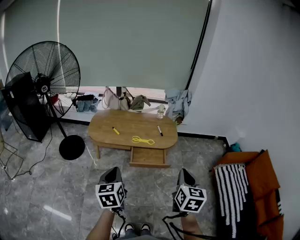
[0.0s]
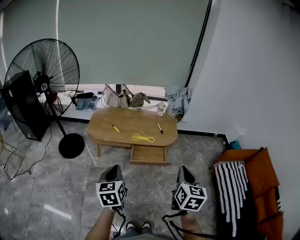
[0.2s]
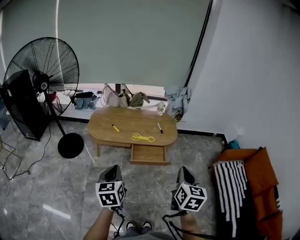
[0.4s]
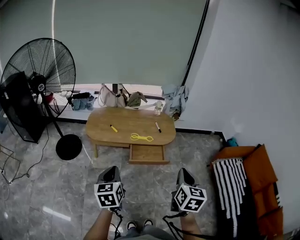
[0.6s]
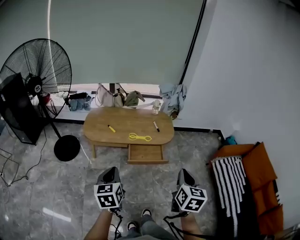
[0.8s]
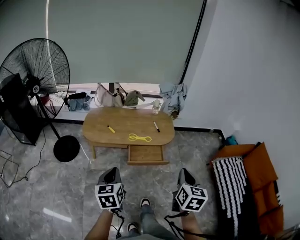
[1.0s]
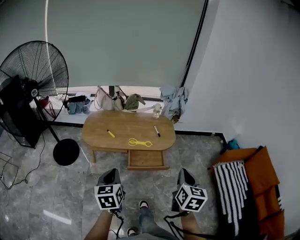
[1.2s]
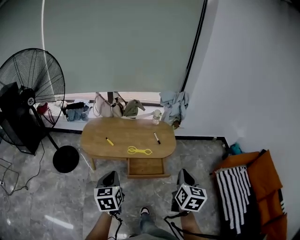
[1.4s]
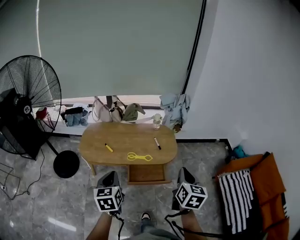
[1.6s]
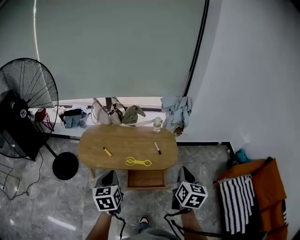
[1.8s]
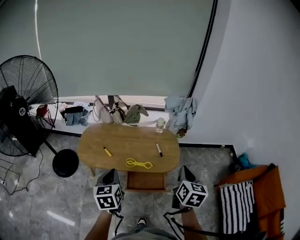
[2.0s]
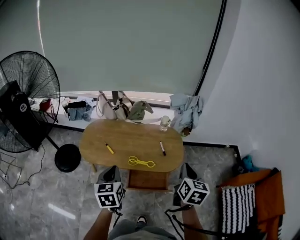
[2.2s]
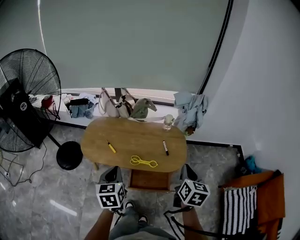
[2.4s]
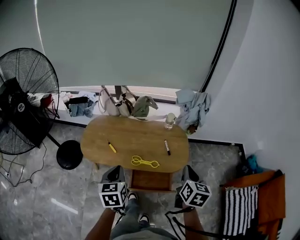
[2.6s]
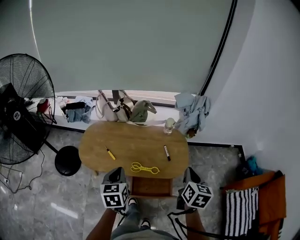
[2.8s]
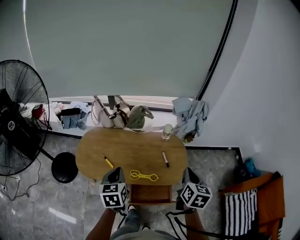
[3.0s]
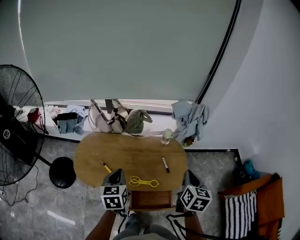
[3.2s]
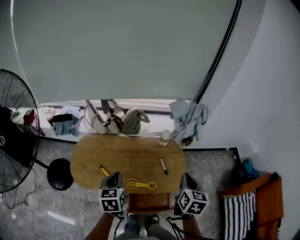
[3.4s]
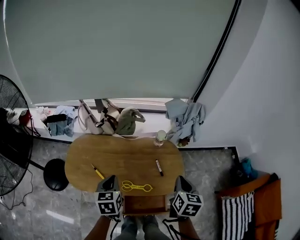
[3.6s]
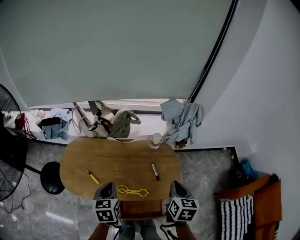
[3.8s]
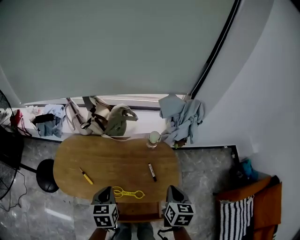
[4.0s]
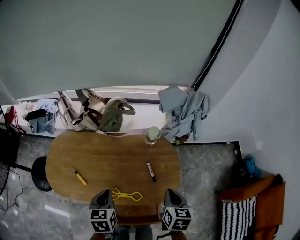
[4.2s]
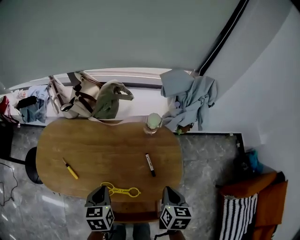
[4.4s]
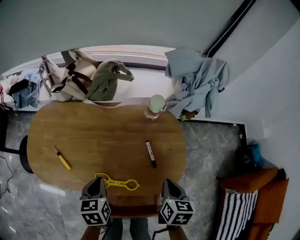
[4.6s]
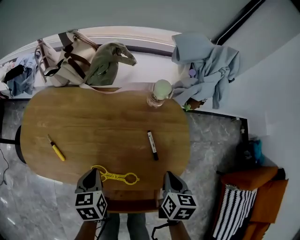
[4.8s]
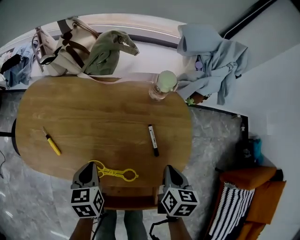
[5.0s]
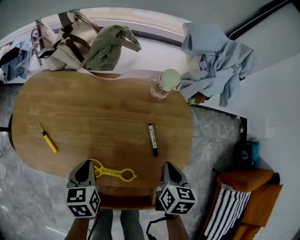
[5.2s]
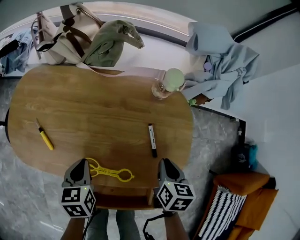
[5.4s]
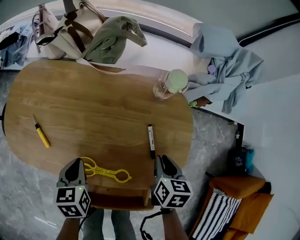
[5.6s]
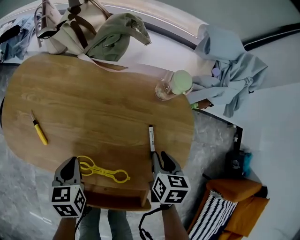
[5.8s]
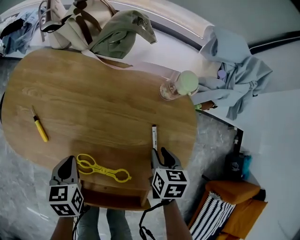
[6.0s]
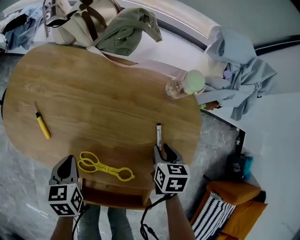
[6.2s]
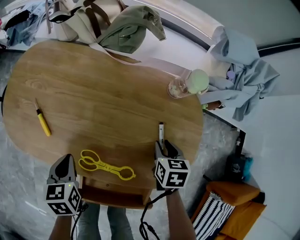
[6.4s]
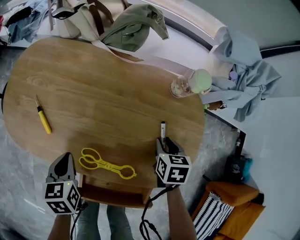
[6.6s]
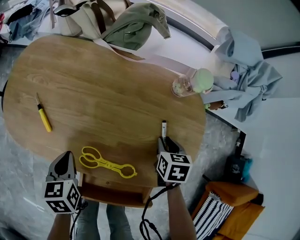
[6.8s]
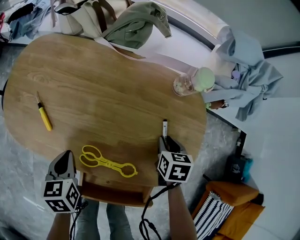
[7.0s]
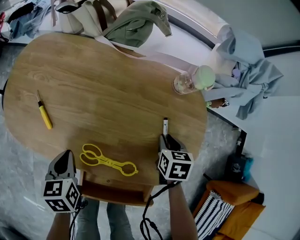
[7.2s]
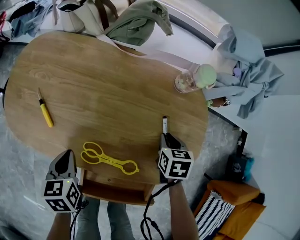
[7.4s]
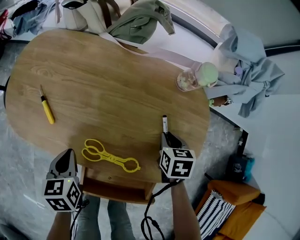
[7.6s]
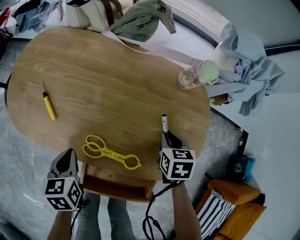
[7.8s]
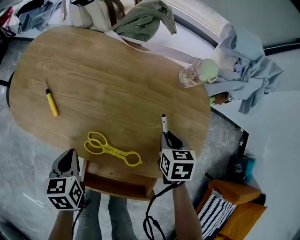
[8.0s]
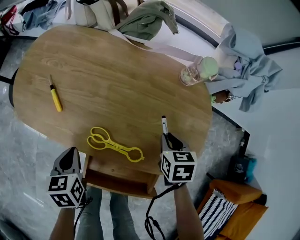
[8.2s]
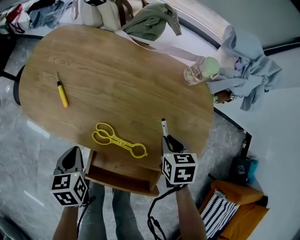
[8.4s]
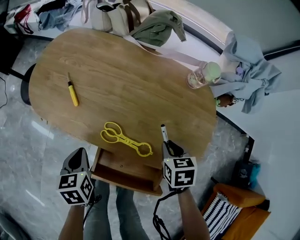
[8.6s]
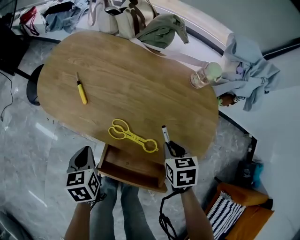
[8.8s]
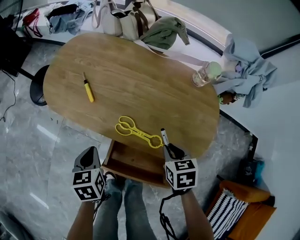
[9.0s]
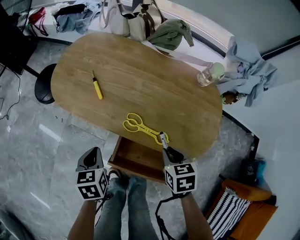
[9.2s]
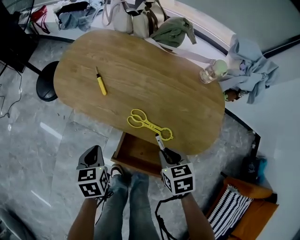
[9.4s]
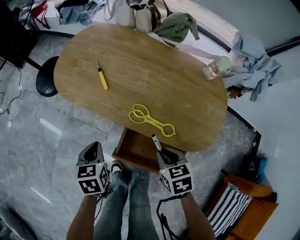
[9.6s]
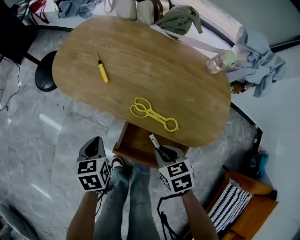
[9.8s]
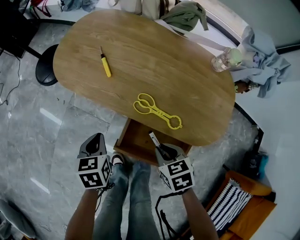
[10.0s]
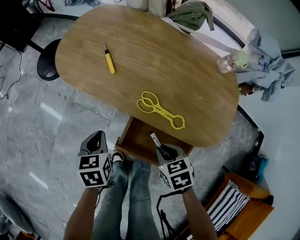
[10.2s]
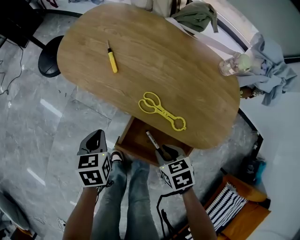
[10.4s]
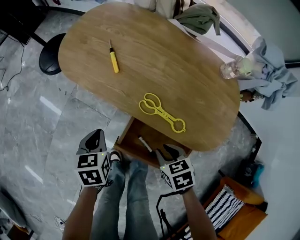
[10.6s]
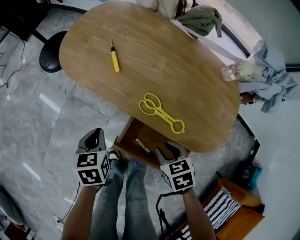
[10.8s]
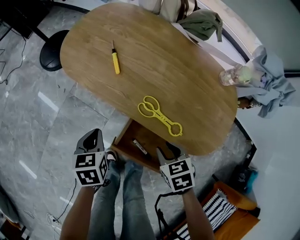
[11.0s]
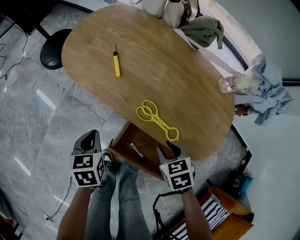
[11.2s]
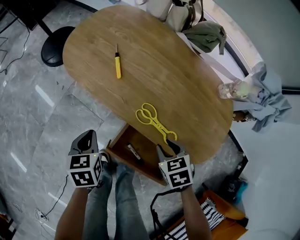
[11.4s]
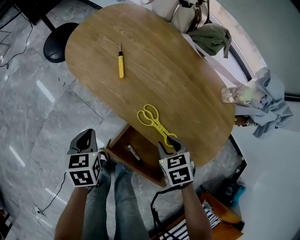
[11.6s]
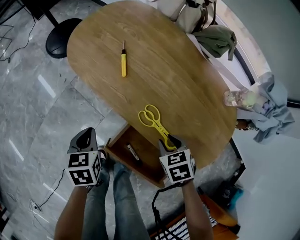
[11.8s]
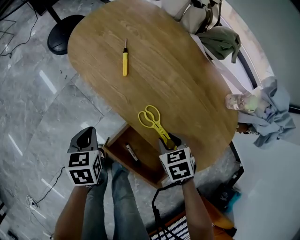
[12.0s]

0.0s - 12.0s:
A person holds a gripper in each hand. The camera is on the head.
0.0s - 1.6s: The two grippers go some 20 cm forward.
1.6s - 3.0s: Both grippers move forward, roughly 25 cm.
3.0s - 4.4s: The grippers both shift downward and forward by approximately 30 cm.
4.4s - 6.0s: The left gripper heads downward and to the left, covering roughly 15 cm. The right gripper travels downward and forward by roughly 20 cm, changes its angle by approximately 20 degrees, and opens.
6.0s - 7.6s: The left gripper ends up roughly 5 cm from where it was.
7.6s - 9.0s: The left gripper shifts approximately 10 cm backward. Meanwhile the right gripper goes roughly 20 cm backward, to the left and upward.
9.0s - 10.4s: The right gripper heads to the left, backward and downward, covering some 15 cm, and swivels roughly 20 degrees. Meanwhile the left gripper goes about 5 cm to the left.
10.4s - 12.0s: The right gripper shifts some 15 cm forward and to the right, and swivels some 20 degrees.

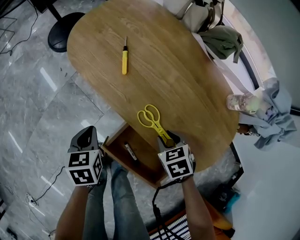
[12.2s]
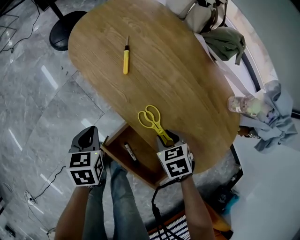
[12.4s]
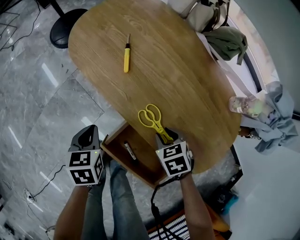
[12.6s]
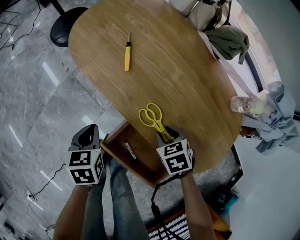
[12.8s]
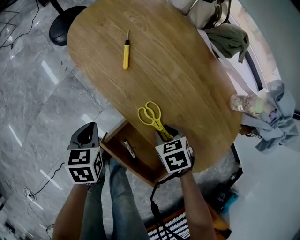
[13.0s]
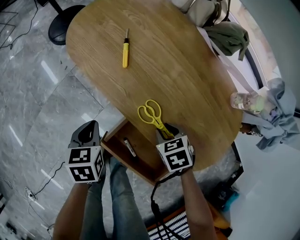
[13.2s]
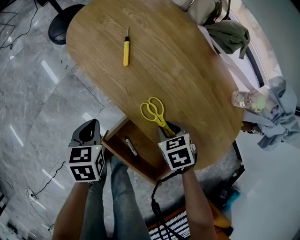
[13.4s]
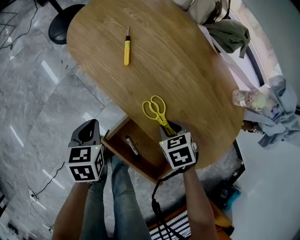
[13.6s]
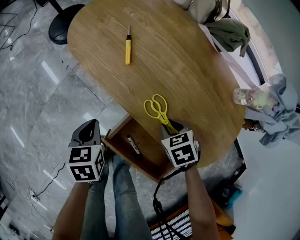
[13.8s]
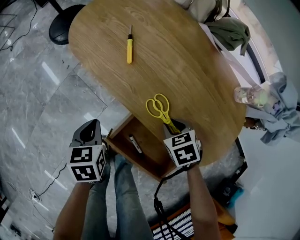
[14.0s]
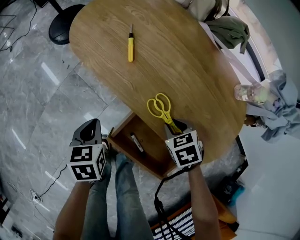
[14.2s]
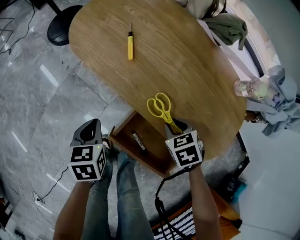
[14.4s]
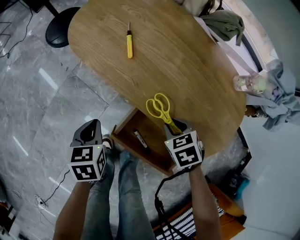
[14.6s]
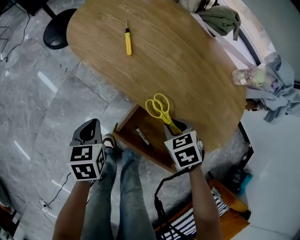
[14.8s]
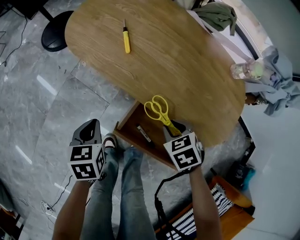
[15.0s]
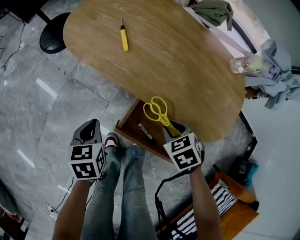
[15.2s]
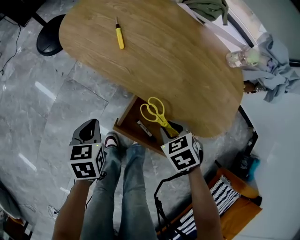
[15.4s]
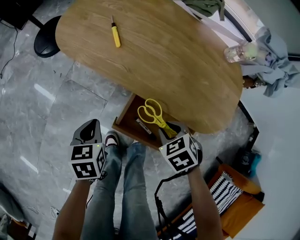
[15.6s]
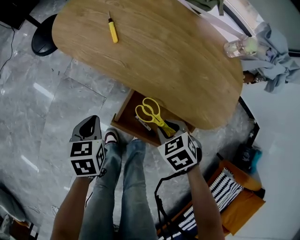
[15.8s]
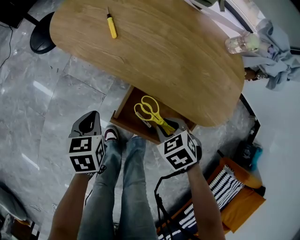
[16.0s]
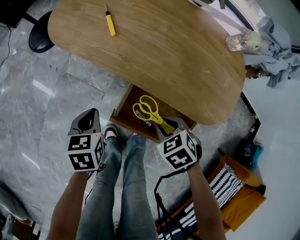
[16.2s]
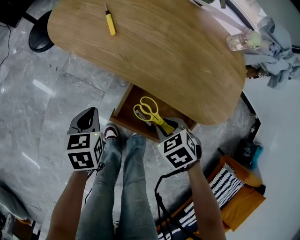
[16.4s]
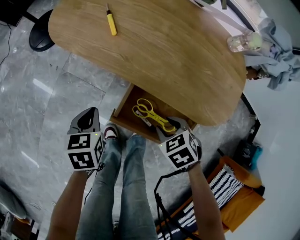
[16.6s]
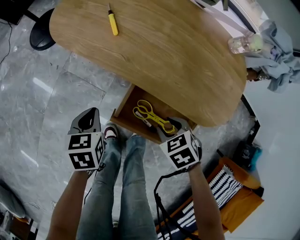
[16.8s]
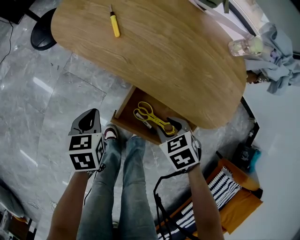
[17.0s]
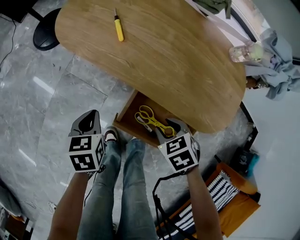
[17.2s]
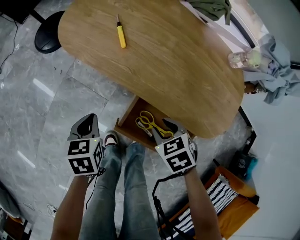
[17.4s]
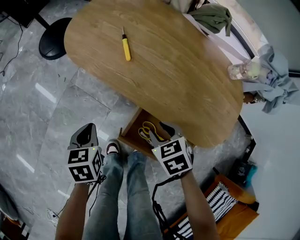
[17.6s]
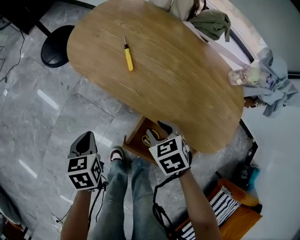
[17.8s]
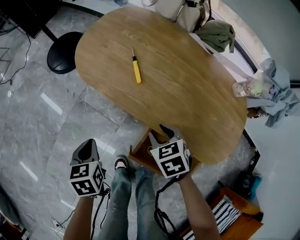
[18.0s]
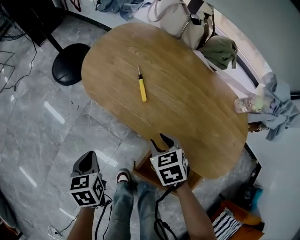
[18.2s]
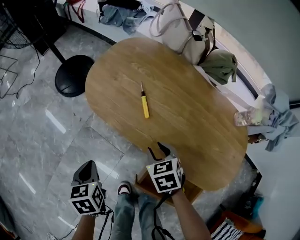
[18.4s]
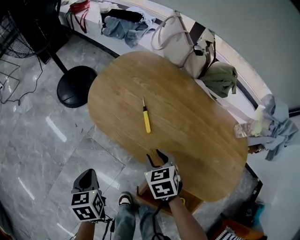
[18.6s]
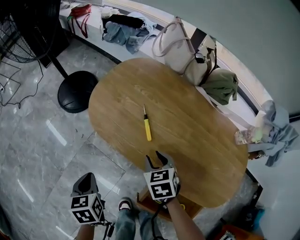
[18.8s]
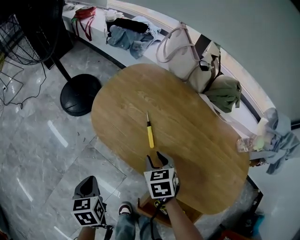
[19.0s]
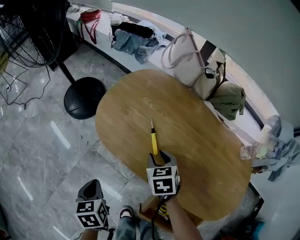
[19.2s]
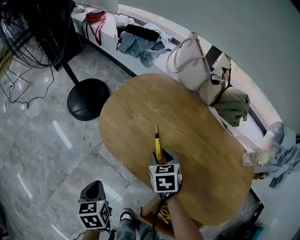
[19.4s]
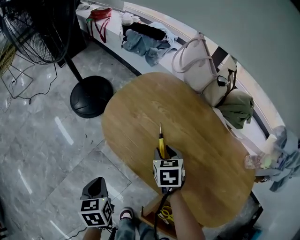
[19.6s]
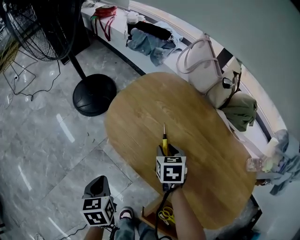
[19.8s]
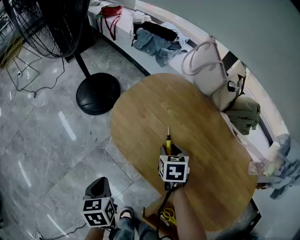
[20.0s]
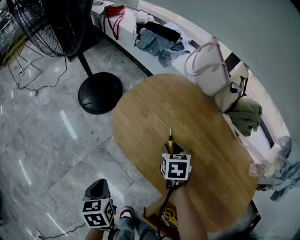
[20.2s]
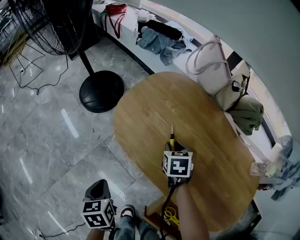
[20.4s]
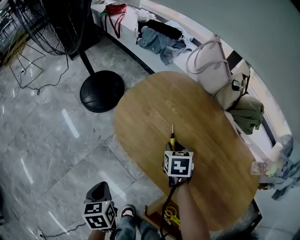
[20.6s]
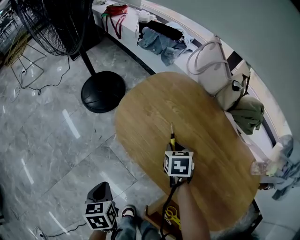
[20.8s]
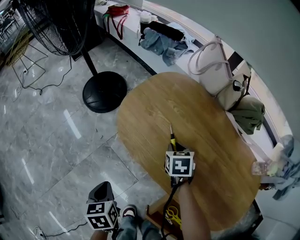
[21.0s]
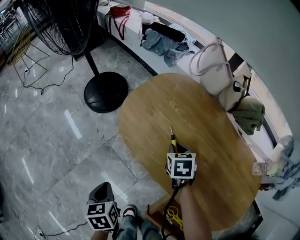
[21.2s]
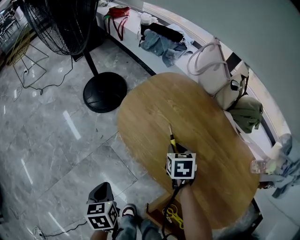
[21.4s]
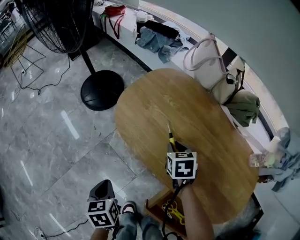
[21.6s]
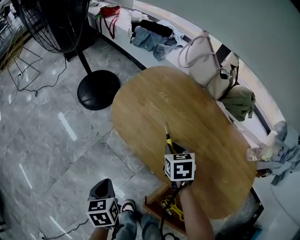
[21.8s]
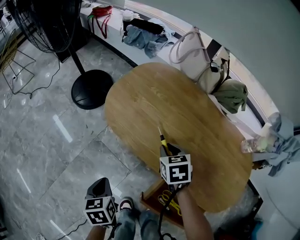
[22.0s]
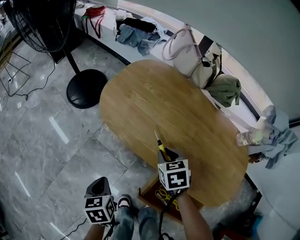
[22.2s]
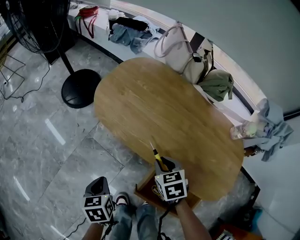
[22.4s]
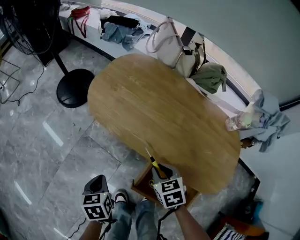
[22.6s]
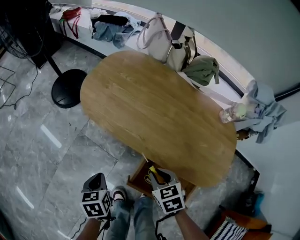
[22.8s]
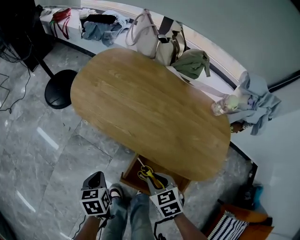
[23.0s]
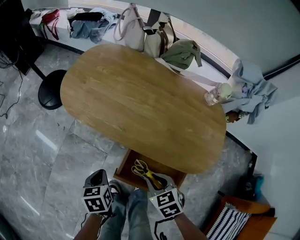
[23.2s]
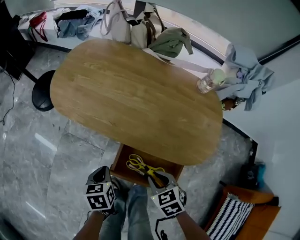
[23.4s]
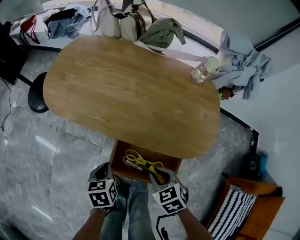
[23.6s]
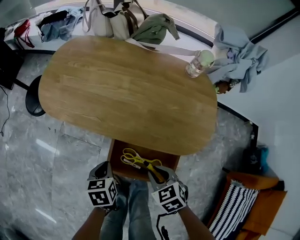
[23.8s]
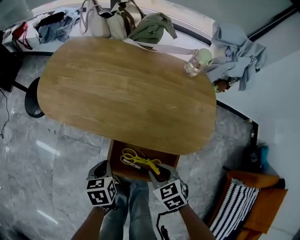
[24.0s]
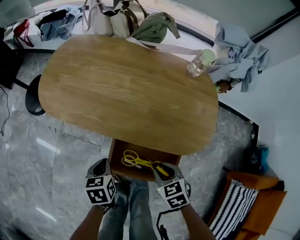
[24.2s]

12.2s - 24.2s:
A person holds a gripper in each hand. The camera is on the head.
12.2s - 13.8s: The grippers move only a little.
13.8s - 15.2s: The right gripper moves backward and to the left, approximately 10 cm. The left gripper shifts by some 5 cm.
15.2s - 16.6s: The right gripper changes place by roughly 5 cm.
16.6s - 18.2s: The left gripper heads to the left and forward, covering roughly 15 cm; the right gripper travels forward by some 20 cm.
18.2s - 19.8s: The left gripper shifts roughly 10 cm forward. The right gripper is displaced forward by roughly 20 cm.
19.8s - 21.2s: The left gripper travels backward by some 5 cm.
21.2s - 22.6s: The left gripper is displaced backward and to the right by approximately 10 cm, while the right gripper goes some 25 cm backward.
22.6s - 24.2s: The right gripper moves backward and to the right, some 20 cm. The left gripper goes about 15 cm to the right, and rotates approximately 20 degrees.
